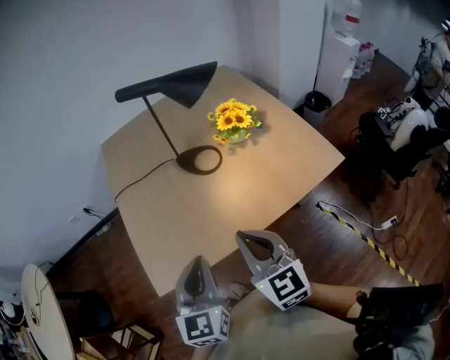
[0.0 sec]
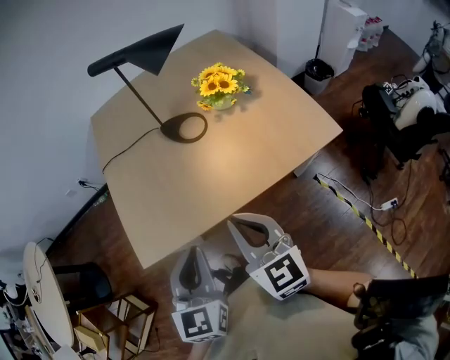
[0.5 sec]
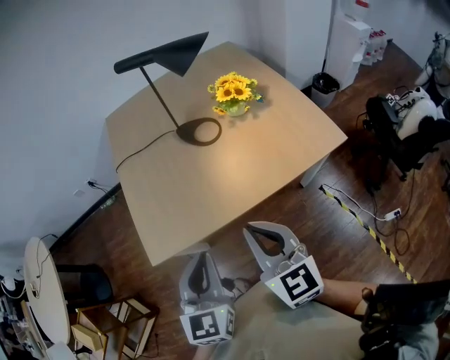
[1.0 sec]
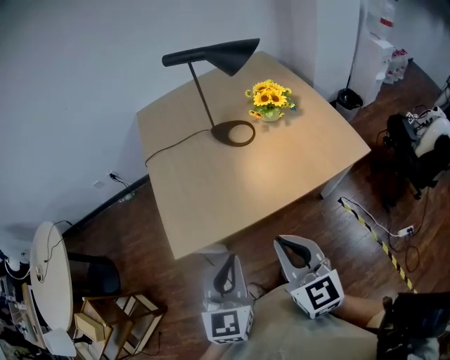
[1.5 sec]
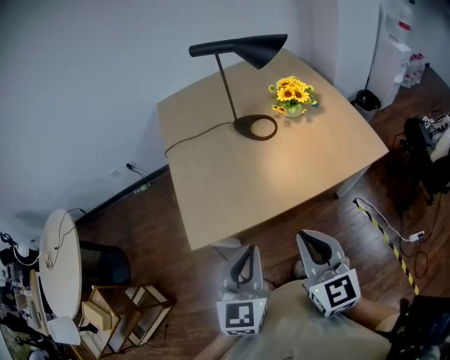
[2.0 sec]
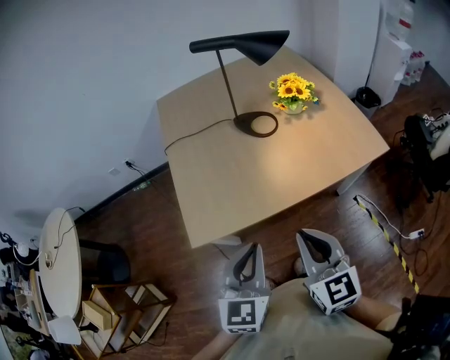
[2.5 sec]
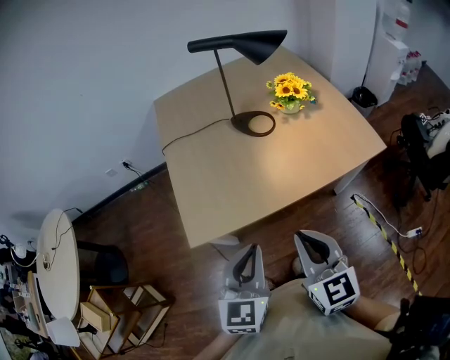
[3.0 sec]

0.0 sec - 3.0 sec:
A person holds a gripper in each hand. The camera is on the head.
0.0 sec - 1.5 sec: Both grippers move backward, some 10 cm.
1.5 sec - 3.0 sec: The grippers move only a little.

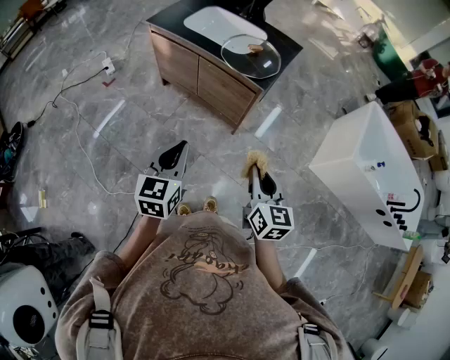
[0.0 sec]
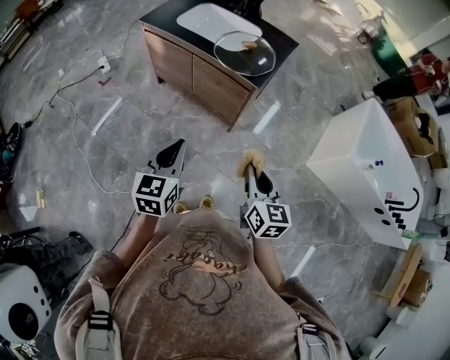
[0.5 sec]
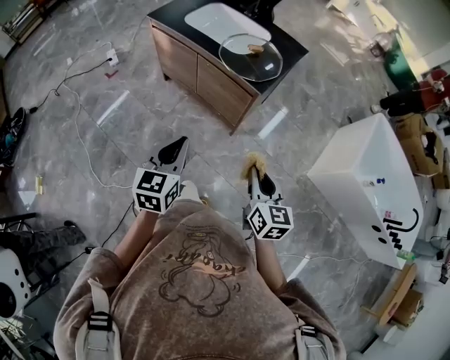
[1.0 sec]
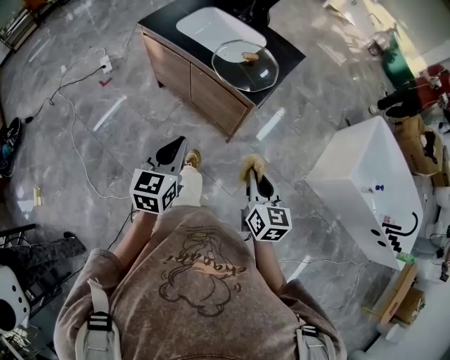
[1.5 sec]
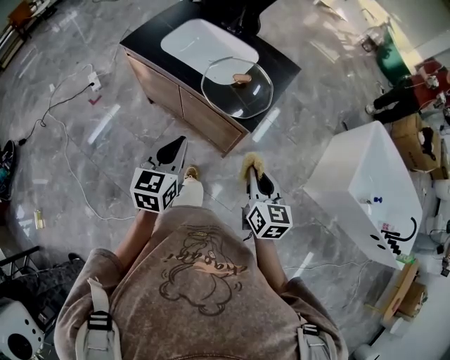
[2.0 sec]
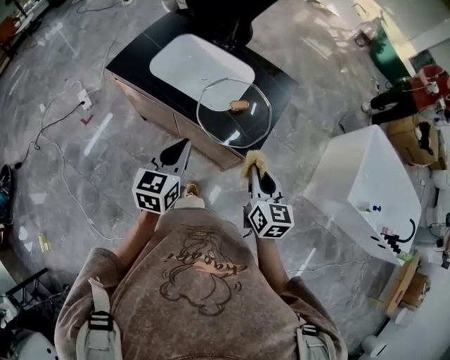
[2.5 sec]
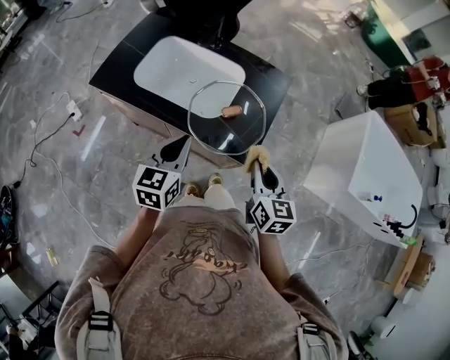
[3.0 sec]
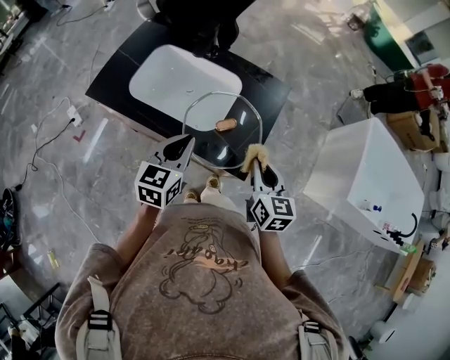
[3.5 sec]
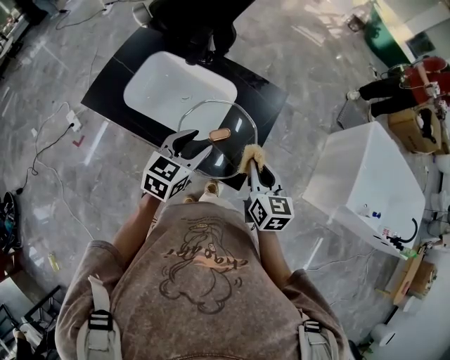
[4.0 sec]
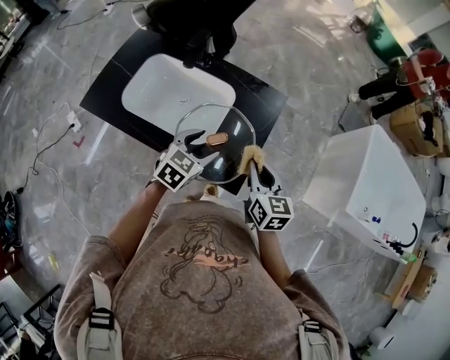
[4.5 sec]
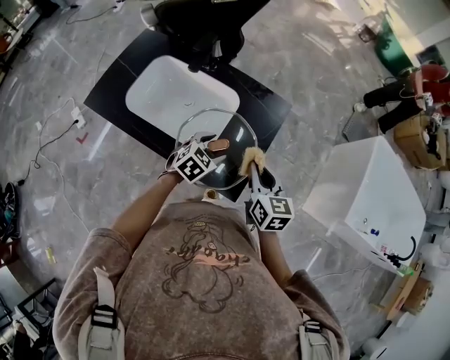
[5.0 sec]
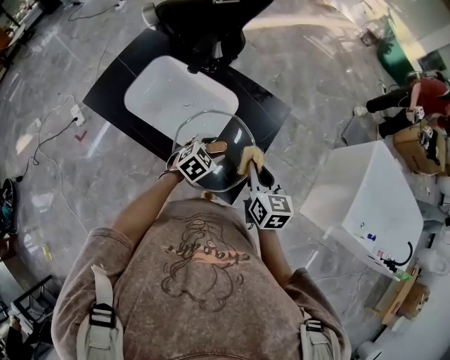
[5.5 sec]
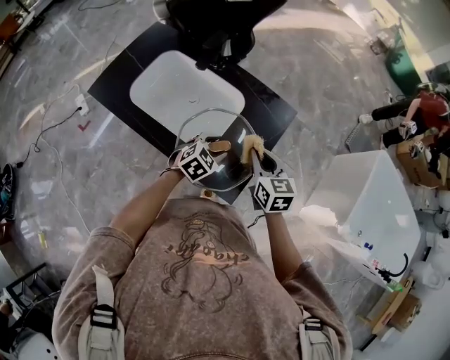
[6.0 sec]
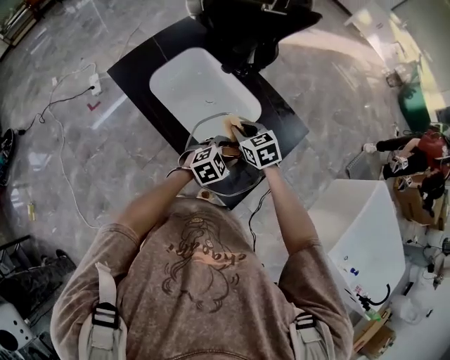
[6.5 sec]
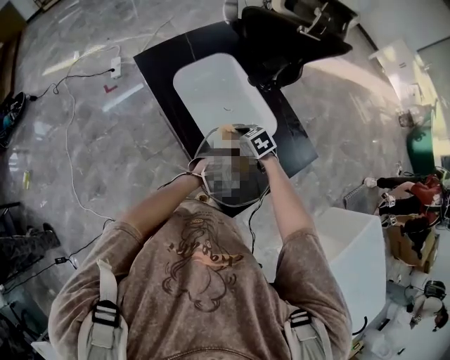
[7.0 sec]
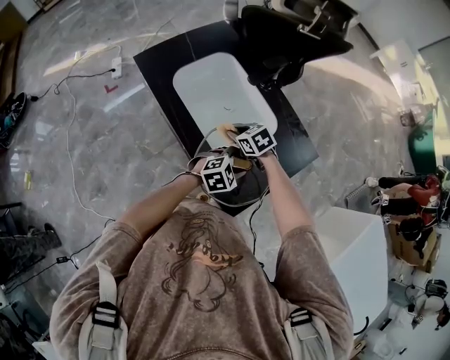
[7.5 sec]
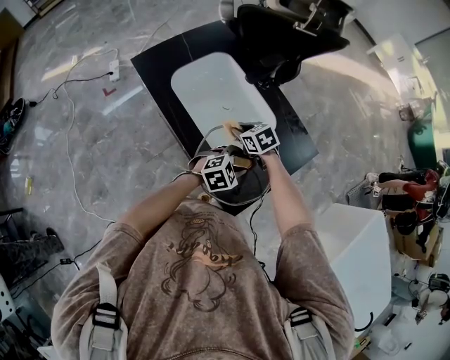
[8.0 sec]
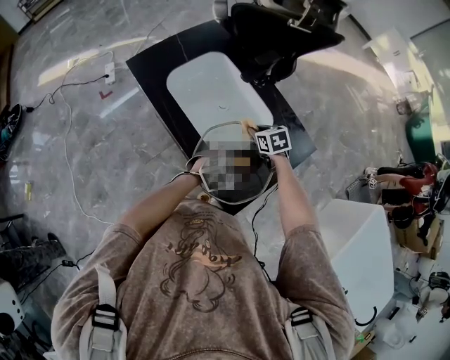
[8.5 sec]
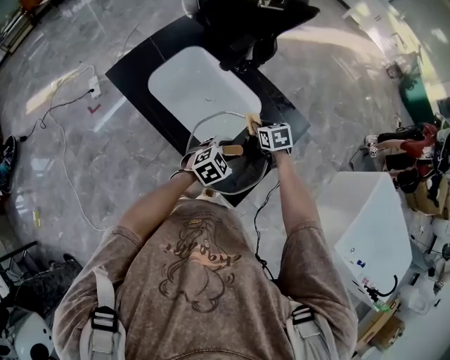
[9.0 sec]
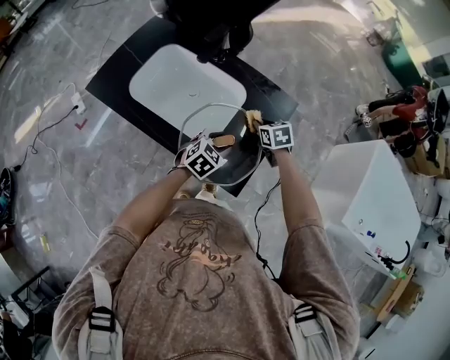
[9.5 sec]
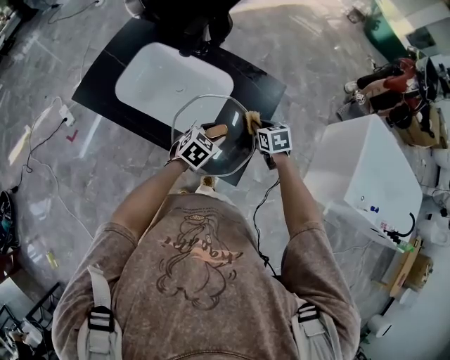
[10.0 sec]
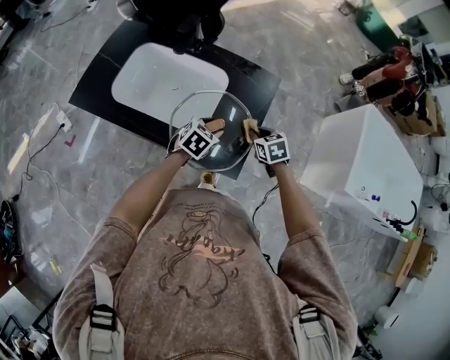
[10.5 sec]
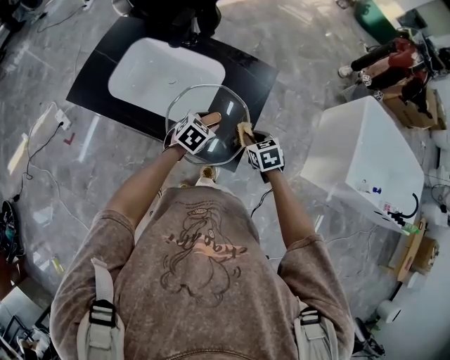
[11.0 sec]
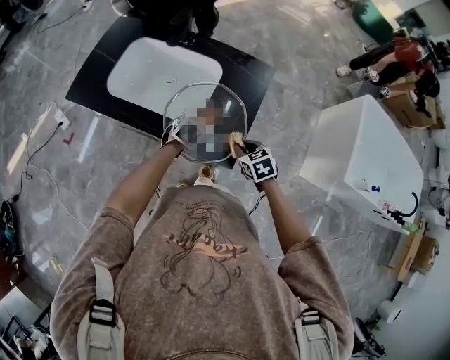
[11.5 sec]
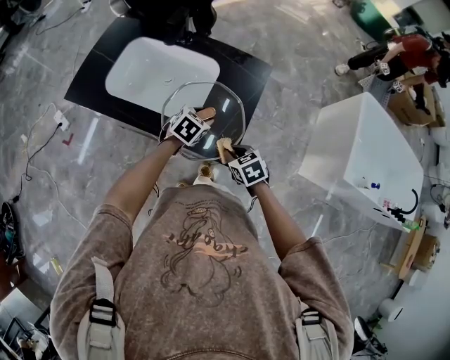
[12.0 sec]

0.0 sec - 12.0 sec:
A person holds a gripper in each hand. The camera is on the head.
0.0 sec - 2.0 sec: The two grippers go about 25 cm forward.
2.0 sec - 4.0 sec: The grippers both shift forward by about 30 cm. The left gripper swivels about 30 degrees, and opens.
4.0 sec - 6.0 sec: The left gripper shifts some 15 cm downward and forward, and turns by approximately 30 degrees. The right gripper shifts about 10 cm forward.
6.0 sec - 8.0 sec: The right gripper moves roughly 25 cm, and rotates some 50 degrees.
8.0 sec - 10.0 sec: The right gripper moves roughly 25 cm, and changes its angle by approximately 50 degrees.
10.0 sec - 12.0 sec: The right gripper moves backward, about 20 cm.

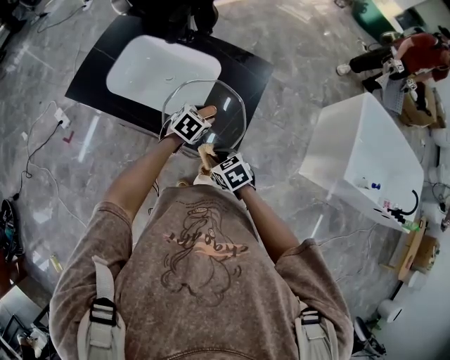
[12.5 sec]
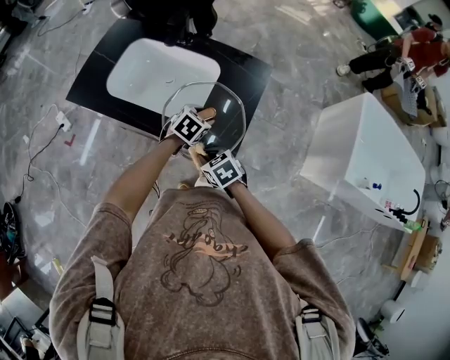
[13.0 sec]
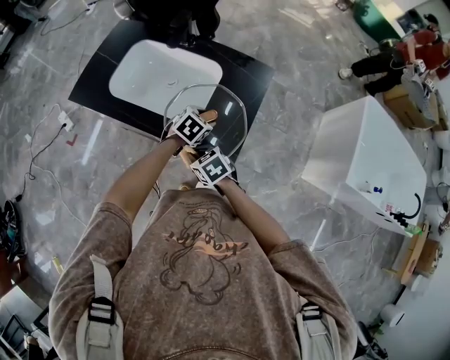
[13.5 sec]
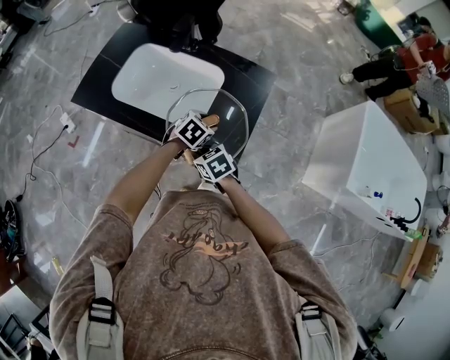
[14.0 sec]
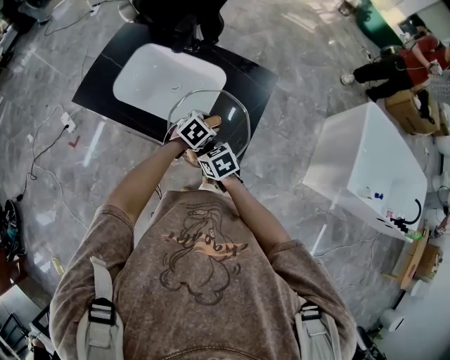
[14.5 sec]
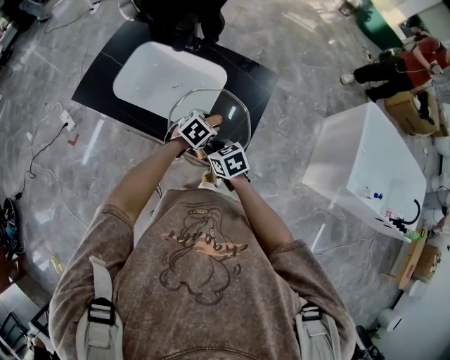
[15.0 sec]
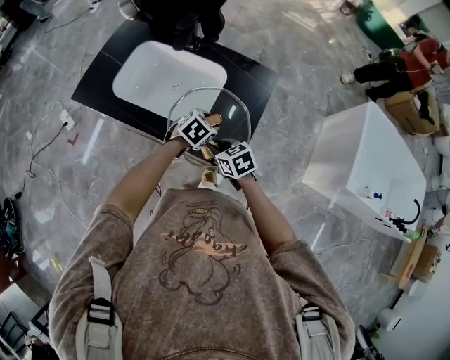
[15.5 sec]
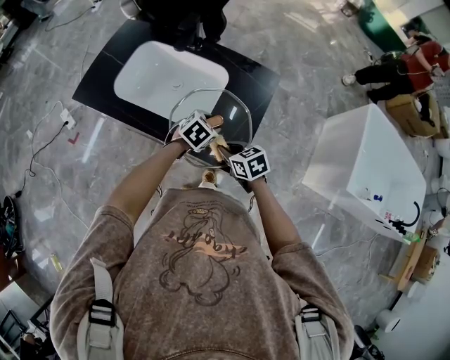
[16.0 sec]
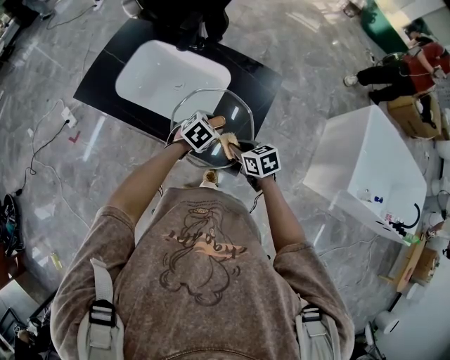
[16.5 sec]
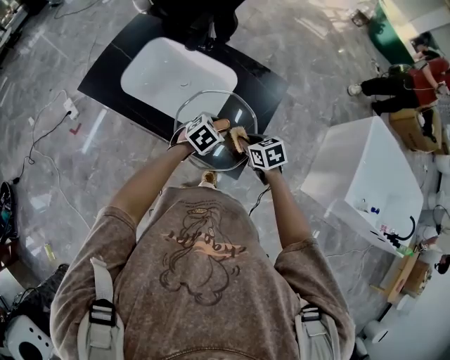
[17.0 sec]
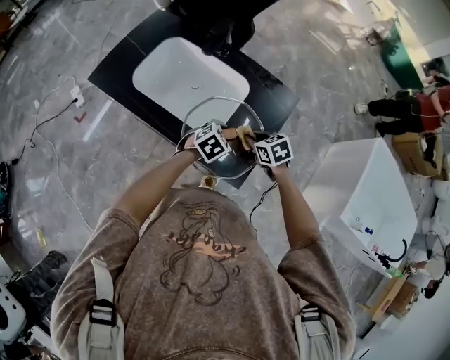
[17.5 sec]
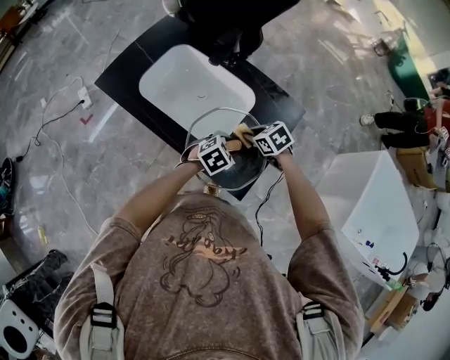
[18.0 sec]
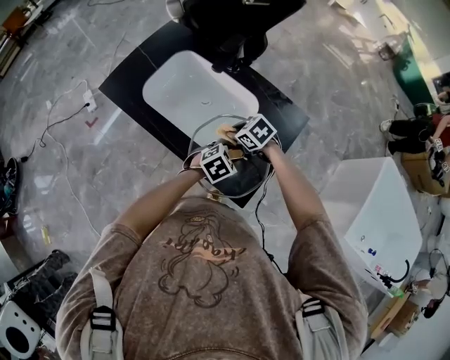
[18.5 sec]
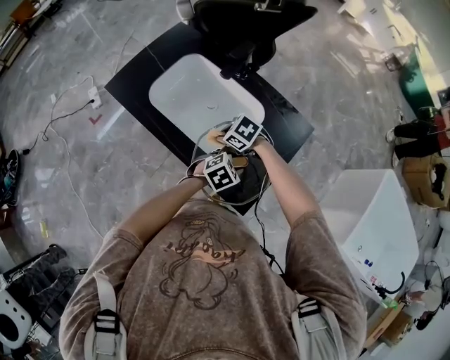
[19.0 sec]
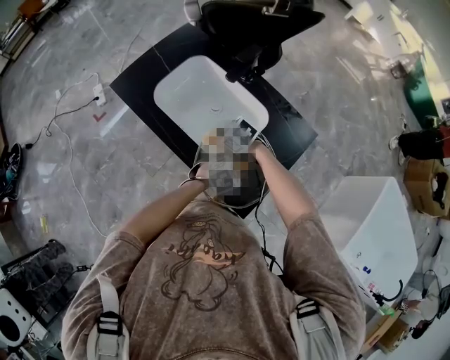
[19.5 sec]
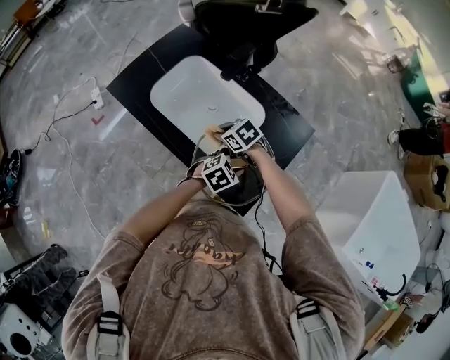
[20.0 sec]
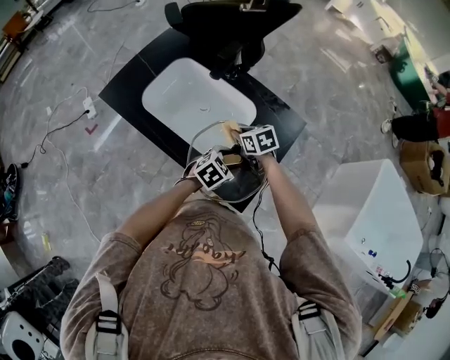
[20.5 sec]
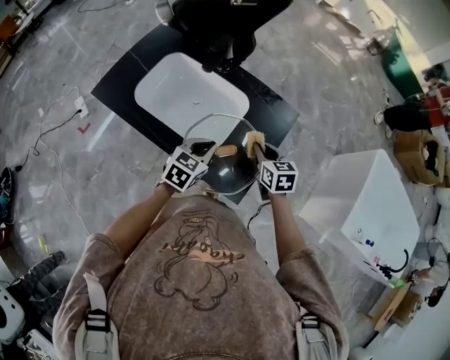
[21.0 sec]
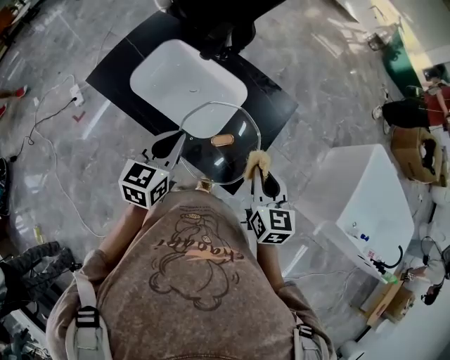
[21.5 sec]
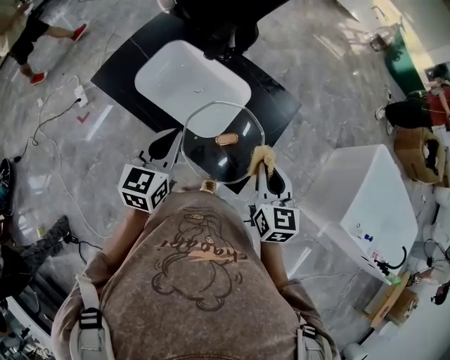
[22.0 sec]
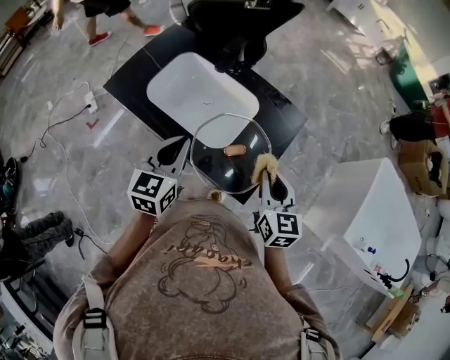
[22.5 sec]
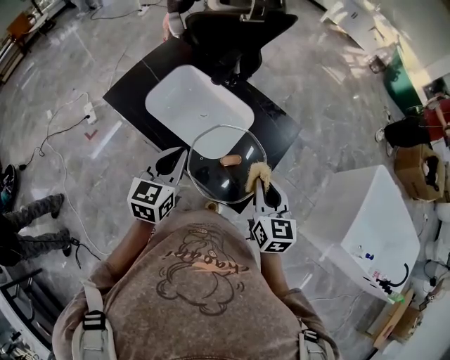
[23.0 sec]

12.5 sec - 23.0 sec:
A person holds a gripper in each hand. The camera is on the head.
12.5 sec - 14.5 sec: The right gripper shifts some 10 cm to the left and forward.
14.5 sec - 16.5 sec: The right gripper shifts some 10 cm to the right.
16.5 sec - 19.0 sec: The right gripper changes place by about 20 cm, and turns by roughly 50 degrees.
19.0 sec - 21.0 sec: The left gripper goes some 10 cm upward, turns by some 30 degrees, and closes its fingers, while the right gripper changes place by approximately 20 cm, and rotates about 60 degrees.
21.0 sec - 23.0 sec: The right gripper shifts some 15 cm upward and backward, while the left gripper heads upward, to the left and backward, covering some 15 cm, and changes its angle by roughly 30 degrees.

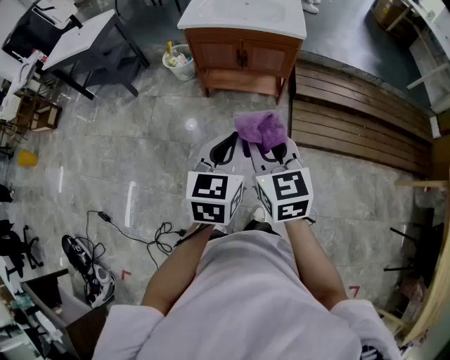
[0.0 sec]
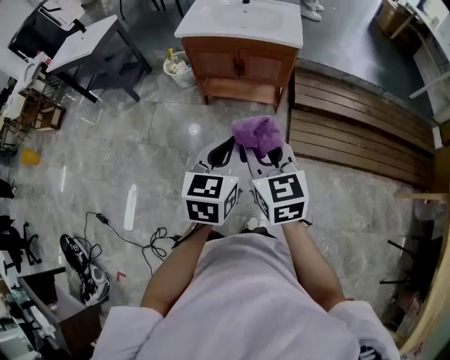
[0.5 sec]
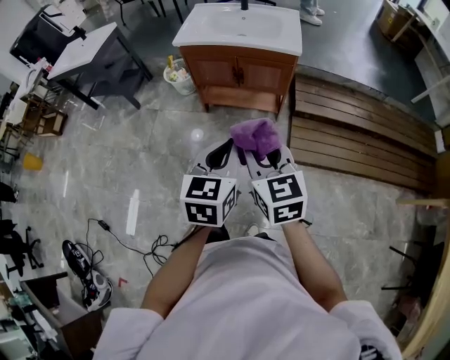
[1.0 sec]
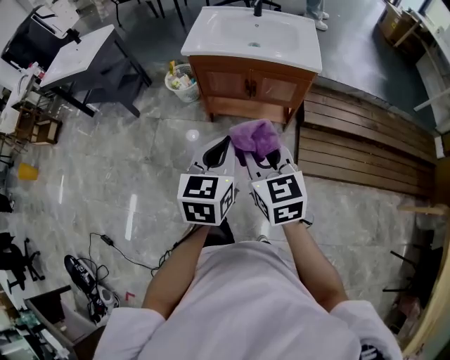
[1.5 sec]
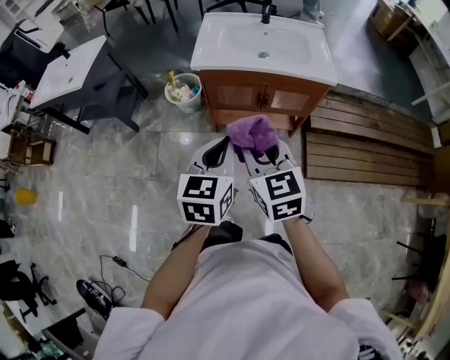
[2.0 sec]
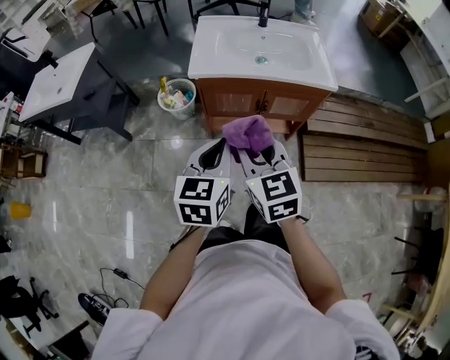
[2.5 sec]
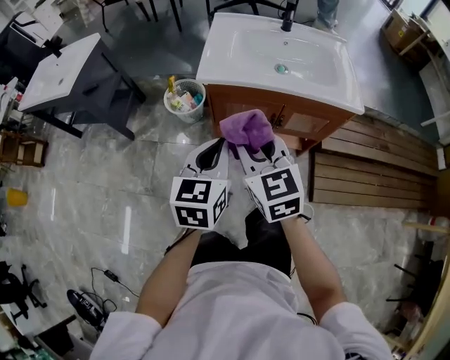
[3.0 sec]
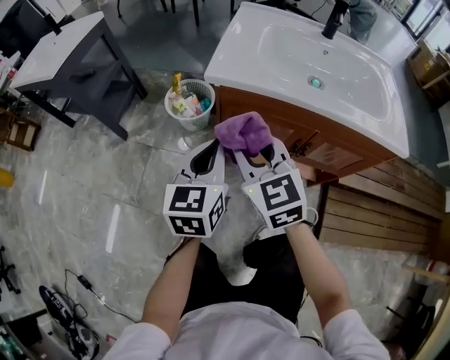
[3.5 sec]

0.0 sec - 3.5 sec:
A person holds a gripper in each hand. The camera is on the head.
0.0 sec - 2.0 sec: Both grippers move forward and to the left, approximately 30 cm.
2.0 sec - 3.5 sec: The grippers both shift forward and downward by about 35 cm.
